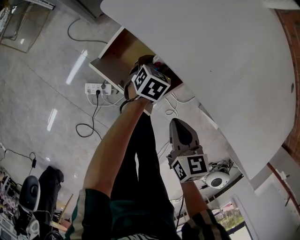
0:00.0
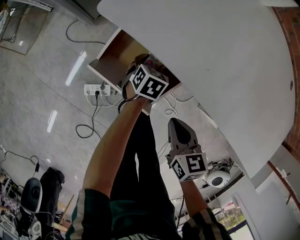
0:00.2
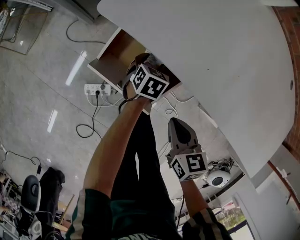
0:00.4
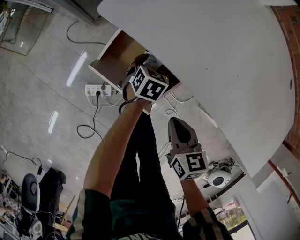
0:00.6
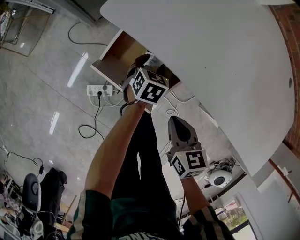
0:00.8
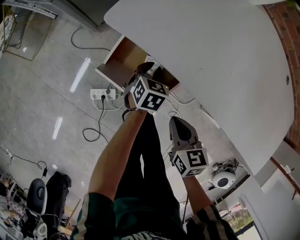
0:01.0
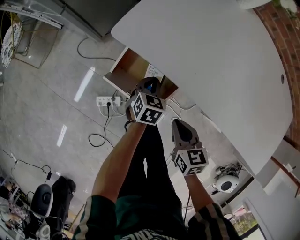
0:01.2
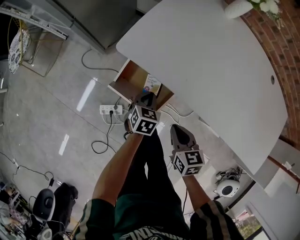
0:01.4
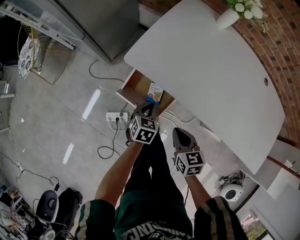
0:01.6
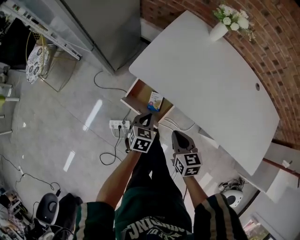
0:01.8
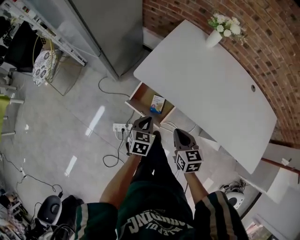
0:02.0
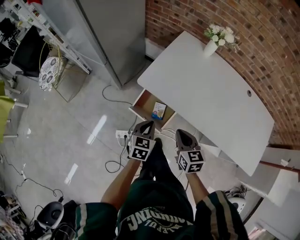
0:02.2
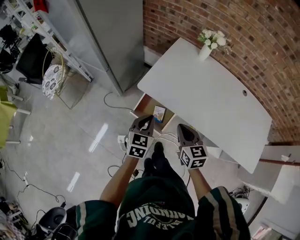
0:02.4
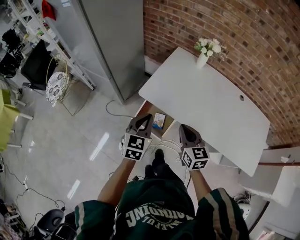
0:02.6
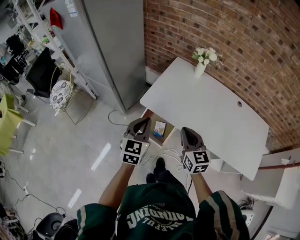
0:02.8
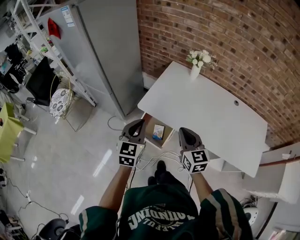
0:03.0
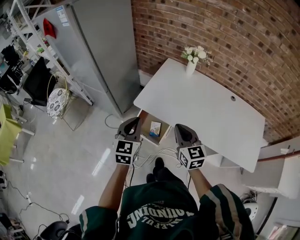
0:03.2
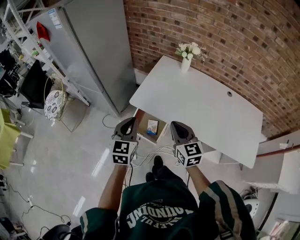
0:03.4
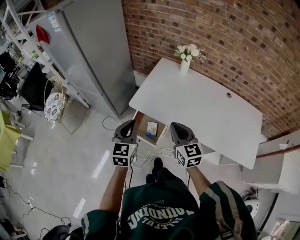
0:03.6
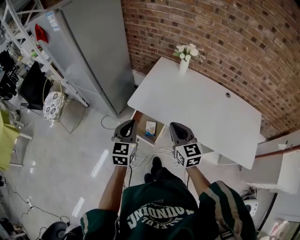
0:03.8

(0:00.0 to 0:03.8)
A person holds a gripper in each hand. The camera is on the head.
0:00.0 - 0:01.2: The left gripper goes approximately 10 cm upward, and closes up.
0:01.2 - 0:02.6: Both grippers move upward, some 35 cm. The right gripper swivels some 30 degrees. The left gripper turns by approximately 30 degrees.
0:02.6 - 0:03.8: The right gripper is displaced upward by some 5 cm; the left gripper ends up approximately 5 cm from where it was.

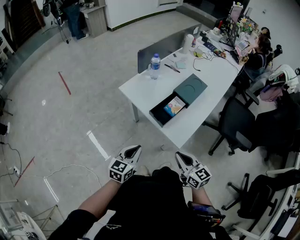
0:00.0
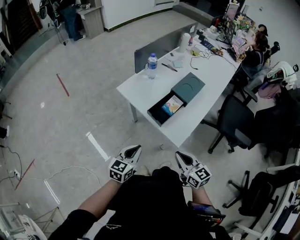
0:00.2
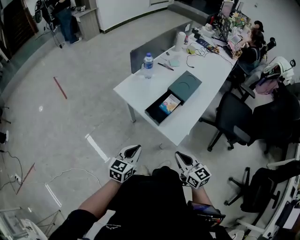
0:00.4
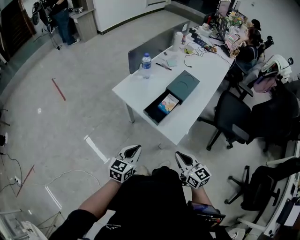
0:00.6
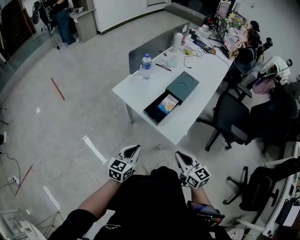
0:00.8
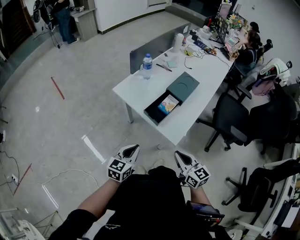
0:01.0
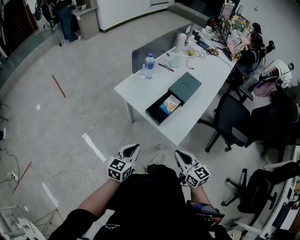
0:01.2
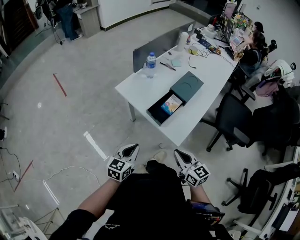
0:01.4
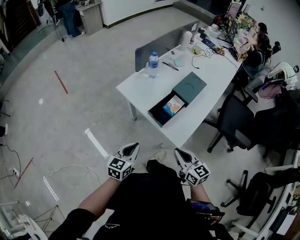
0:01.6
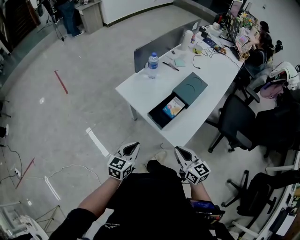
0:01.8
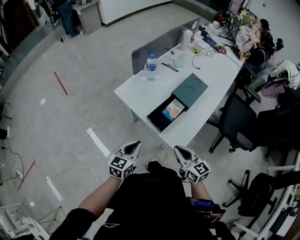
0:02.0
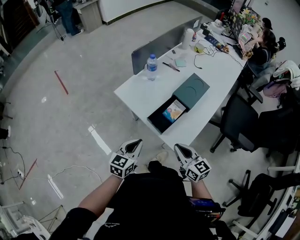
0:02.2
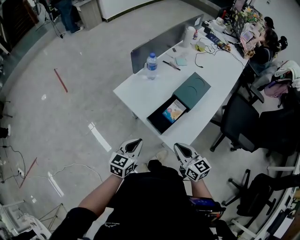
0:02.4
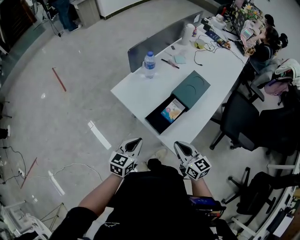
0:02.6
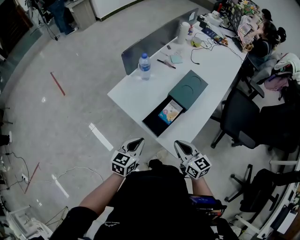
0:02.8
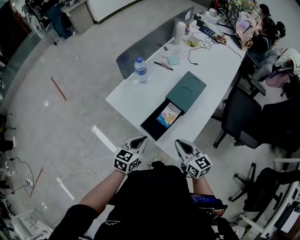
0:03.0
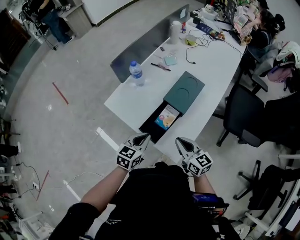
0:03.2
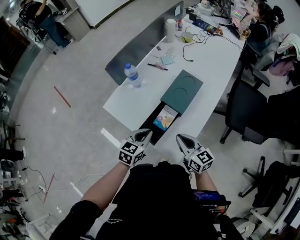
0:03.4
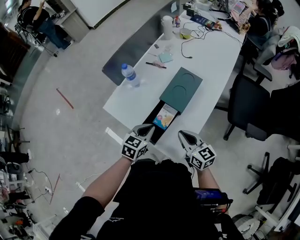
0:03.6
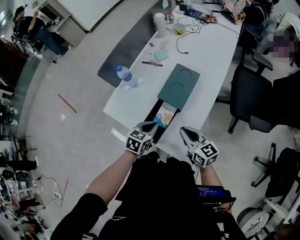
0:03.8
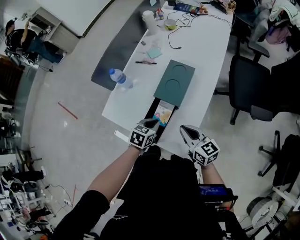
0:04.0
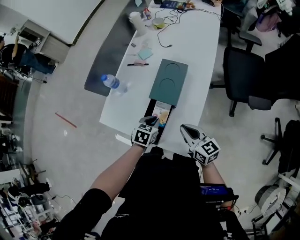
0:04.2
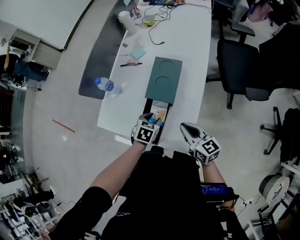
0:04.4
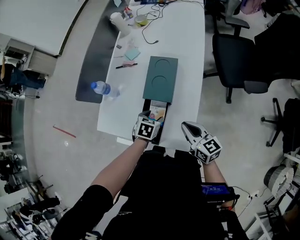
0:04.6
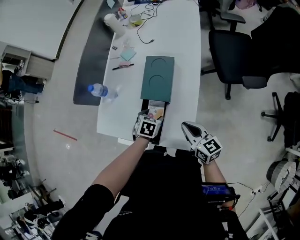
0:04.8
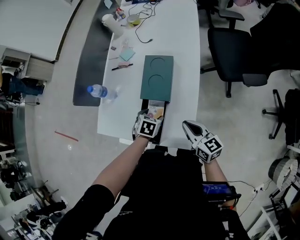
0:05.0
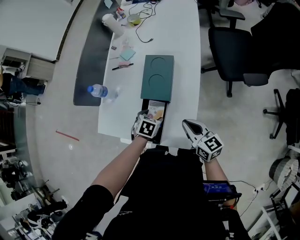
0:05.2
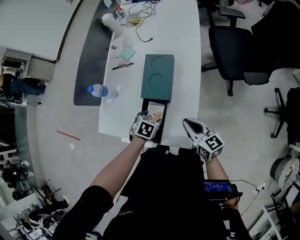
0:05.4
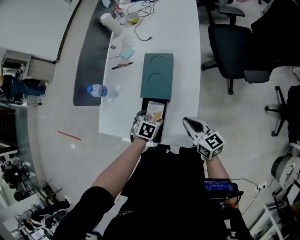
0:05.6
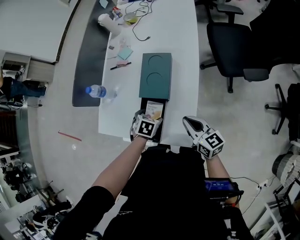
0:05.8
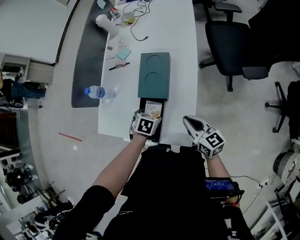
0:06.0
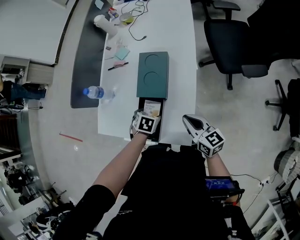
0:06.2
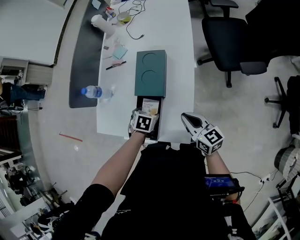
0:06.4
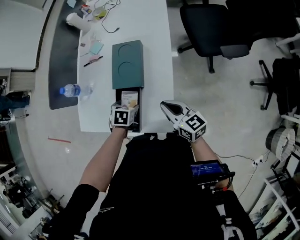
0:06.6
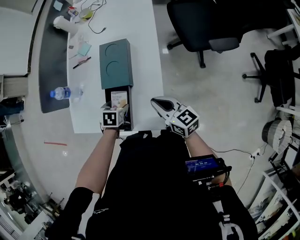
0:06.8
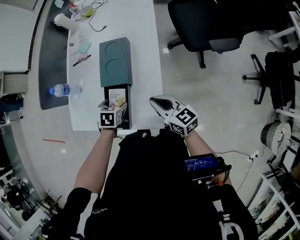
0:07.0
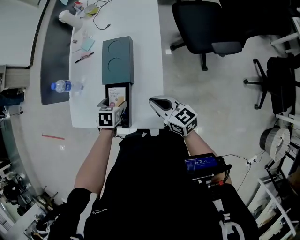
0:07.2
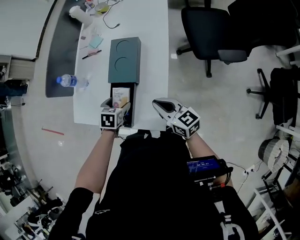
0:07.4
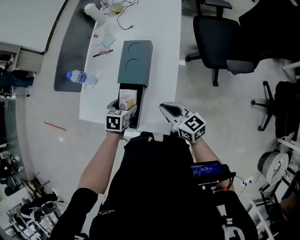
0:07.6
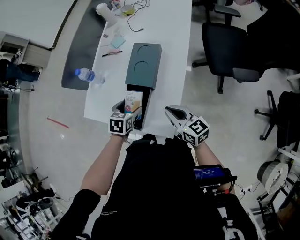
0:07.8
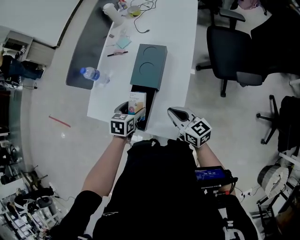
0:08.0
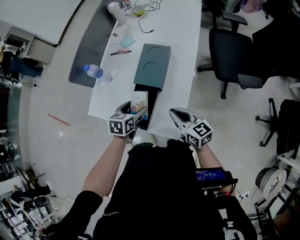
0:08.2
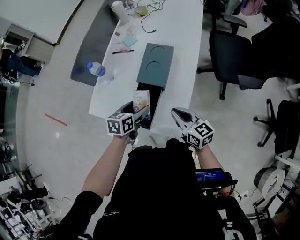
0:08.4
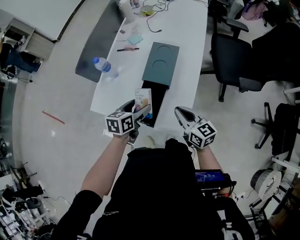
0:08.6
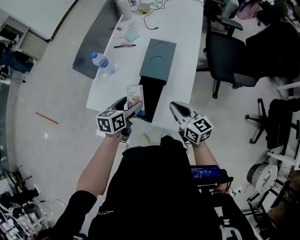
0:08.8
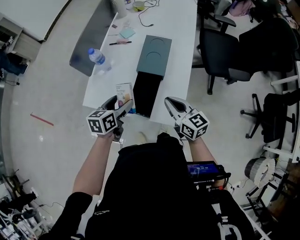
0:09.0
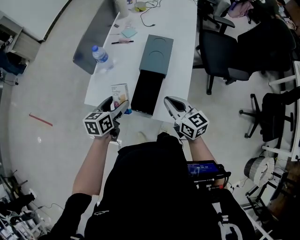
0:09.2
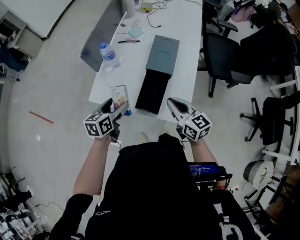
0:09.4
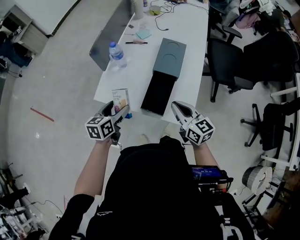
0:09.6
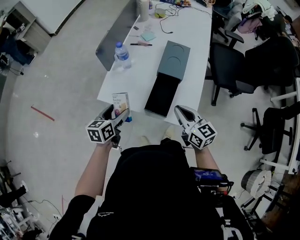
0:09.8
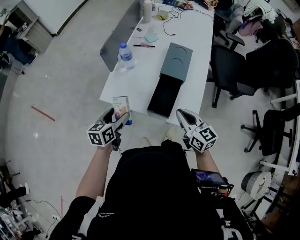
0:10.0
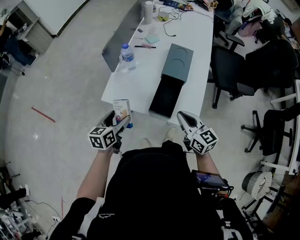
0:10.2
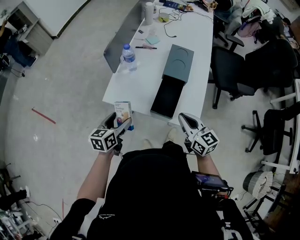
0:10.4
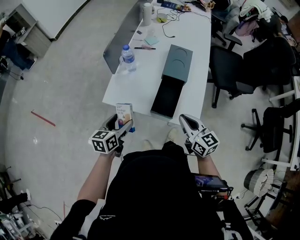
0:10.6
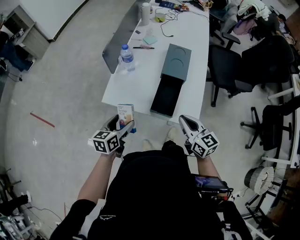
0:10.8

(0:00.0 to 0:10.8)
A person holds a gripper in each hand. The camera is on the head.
0:00.0 - 0:01.6: The grippers stay close to where they were, moving slightly.
0:01.6 - 0:03.0: The left gripper shifts about 15 cm forward and to the right; the right gripper heads forward, covering roughly 15 cm.
0:03.0 - 0:04.6: The right gripper goes roughly 10 cm to the right and forward, and changes its angle by roughly 30 degrees. The left gripper goes about 20 cm forward, downward and to the right, tilts its fingers some 30 degrees downward, and opens its fingers.
0:04.6 - 0:06.2: The grippers move only a little.
0:06.2 - 0:07.8: The left gripper travels upward by roughly 5 cm, and changes its angle by some 20 degrees.
0:07.8 - 0:09.2: The left gripper shifts about 15 cm to the left and upward, and swivels some 30 degrees. The right gripper is displaced to the left by roughly 10 cm.
0:09.2 - 0:10.8: The left gripper is displaced to the left and backward by about 15 cm. Meanwhile the right gripper moves backward and to the left, roughly 10 cm.

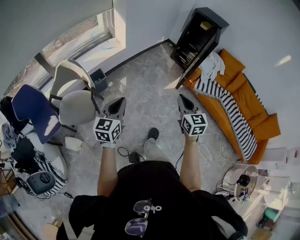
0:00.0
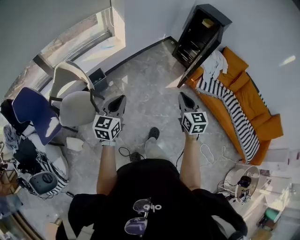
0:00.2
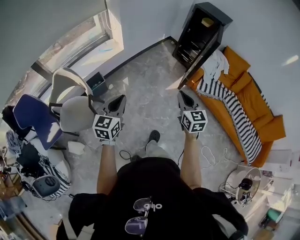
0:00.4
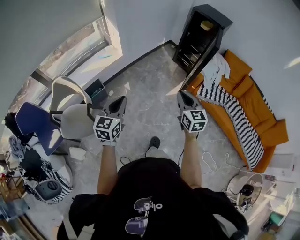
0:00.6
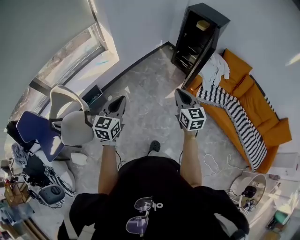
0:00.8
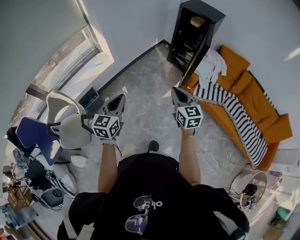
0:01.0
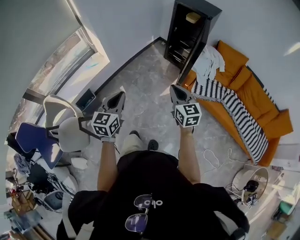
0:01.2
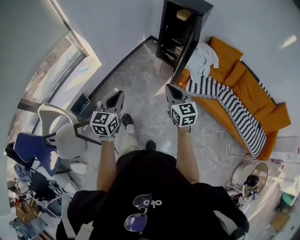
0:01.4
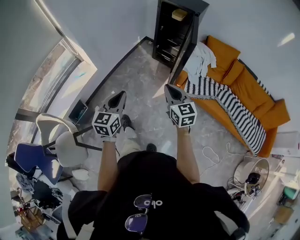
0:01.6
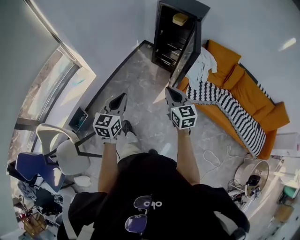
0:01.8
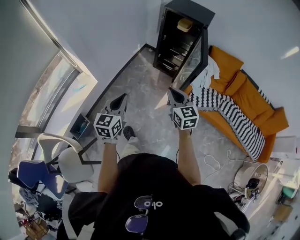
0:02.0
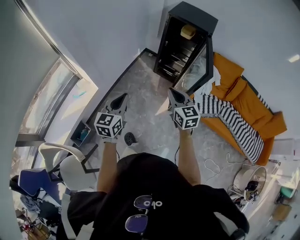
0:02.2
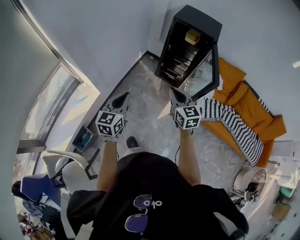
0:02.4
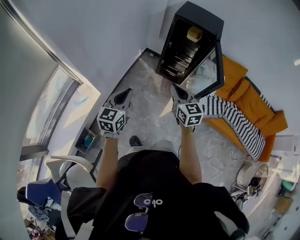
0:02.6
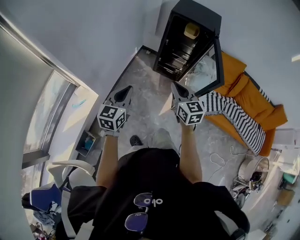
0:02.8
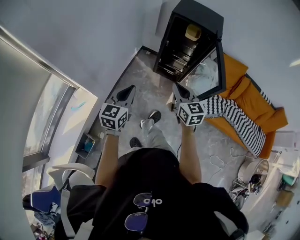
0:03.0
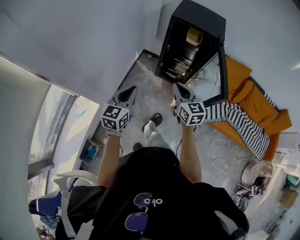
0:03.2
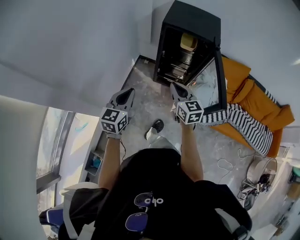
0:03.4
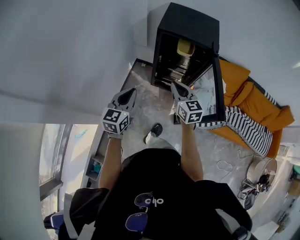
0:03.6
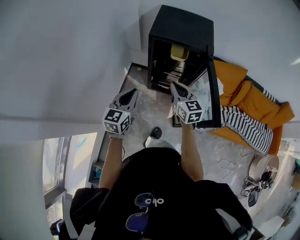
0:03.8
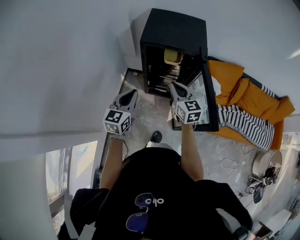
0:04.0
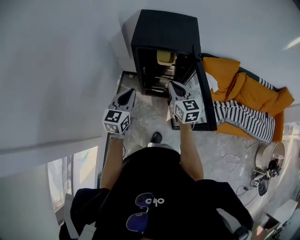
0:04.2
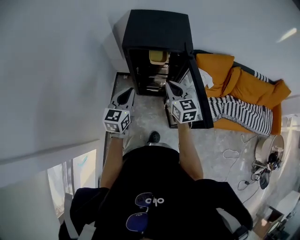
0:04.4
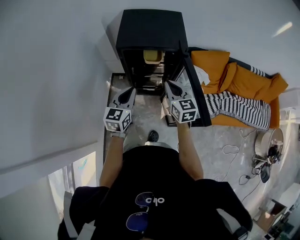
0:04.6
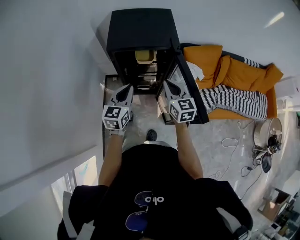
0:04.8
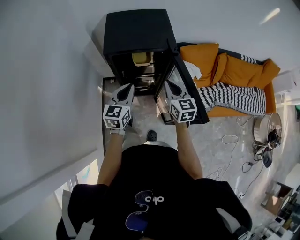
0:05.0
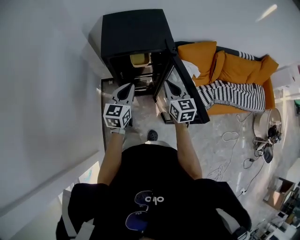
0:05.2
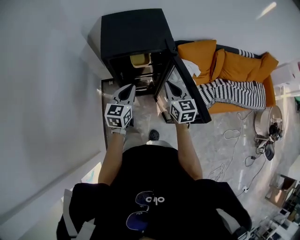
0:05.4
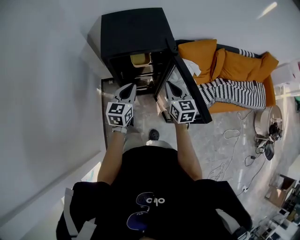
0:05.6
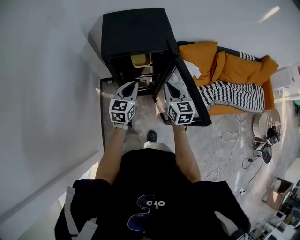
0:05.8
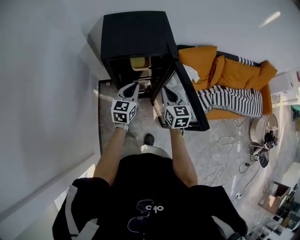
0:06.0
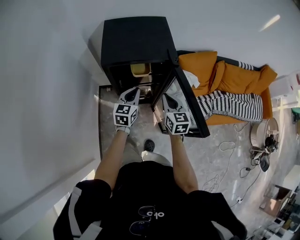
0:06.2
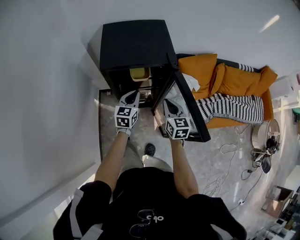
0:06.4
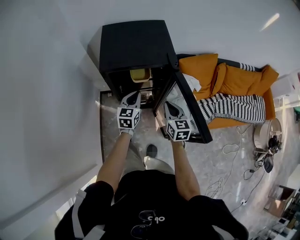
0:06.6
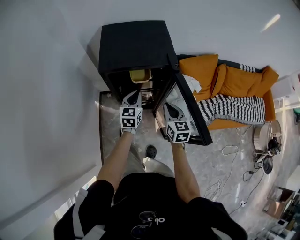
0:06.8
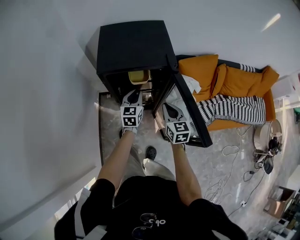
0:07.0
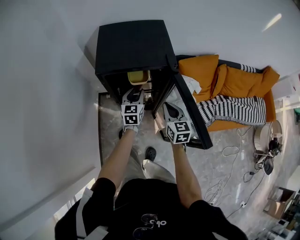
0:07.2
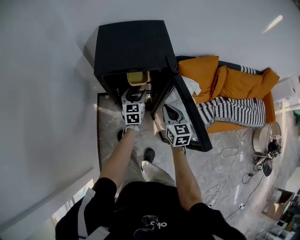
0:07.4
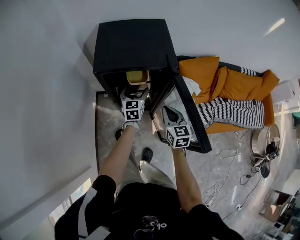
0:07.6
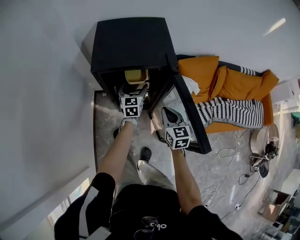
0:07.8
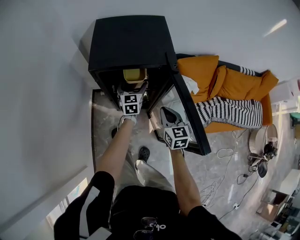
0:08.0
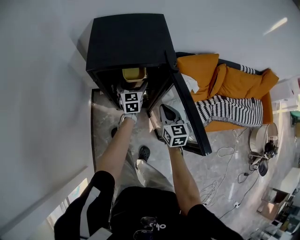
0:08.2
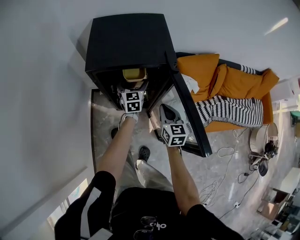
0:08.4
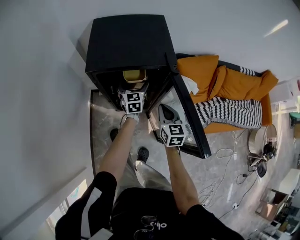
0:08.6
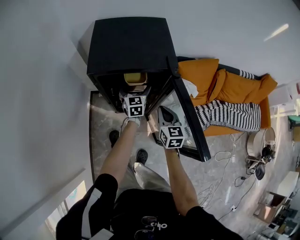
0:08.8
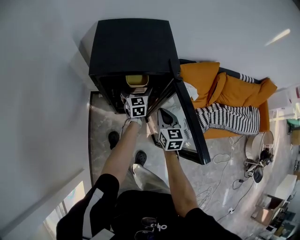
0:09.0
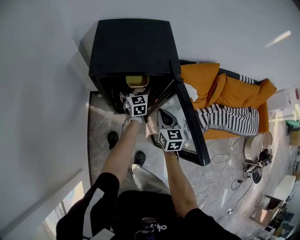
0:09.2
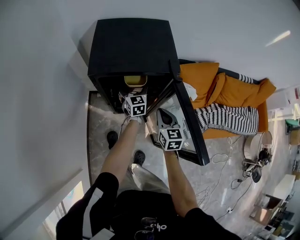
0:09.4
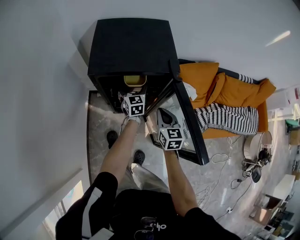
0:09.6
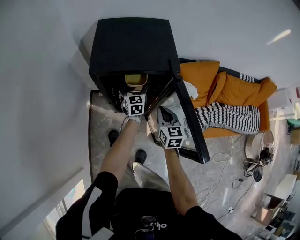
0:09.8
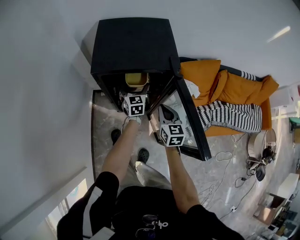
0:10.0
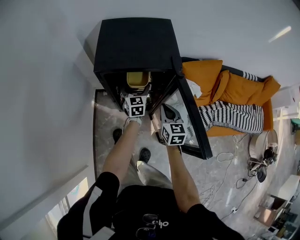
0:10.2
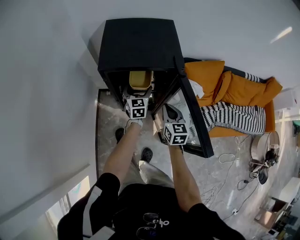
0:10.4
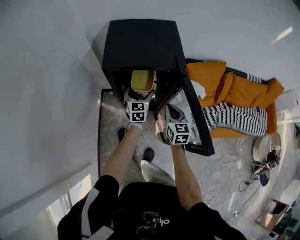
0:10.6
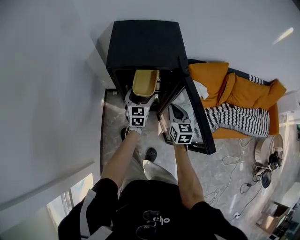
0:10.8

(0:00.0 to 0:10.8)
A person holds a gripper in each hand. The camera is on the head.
0:00.0 - 0:01.6: Both grippers move forward and to the right, approximately 40 cm.
0:01.6 - 0:03.0: The left gripper shifts about 35 cm forward. The right gripper travels forward and to the left by approximately 35 cm.
0:03.0 - 0:04.6: Both grippers travel together forward and to the right, approximately 35 cm. The right gripper rotates roughly 20 degrees.
0:04.6 - 0:06.2: The right gripper goes approximately 5 cm downward, while the left gripper travels forward and downward by some 15 cm.
0:06.2 - 0:07.8: The left gripper travels forward and downward by approximately 15 cm, and opens up; the right gripper heads downward, covering about 5 cm.
0:07.8 - 0:09.2: The left gripper moves approximately 5 cm.
0:09.2 - 0:10.8: The left gripper shifts approximately 10 cm backward.
